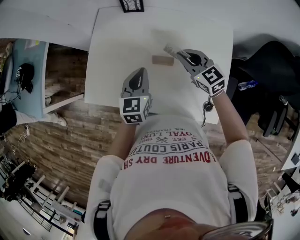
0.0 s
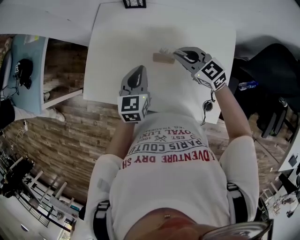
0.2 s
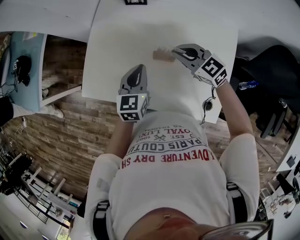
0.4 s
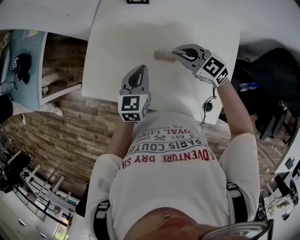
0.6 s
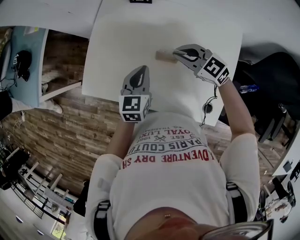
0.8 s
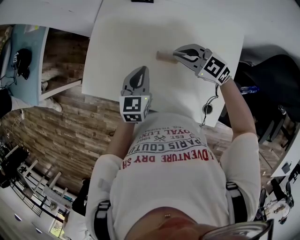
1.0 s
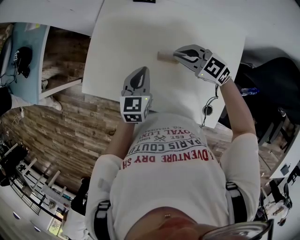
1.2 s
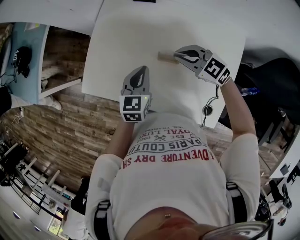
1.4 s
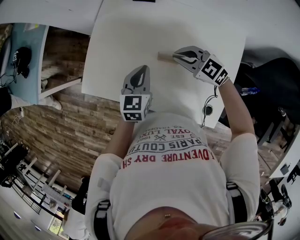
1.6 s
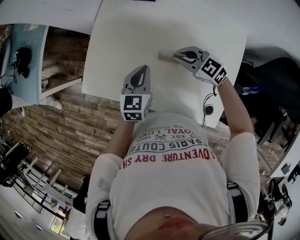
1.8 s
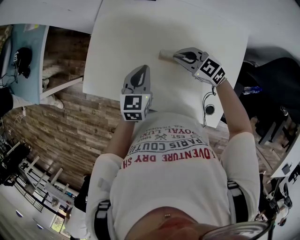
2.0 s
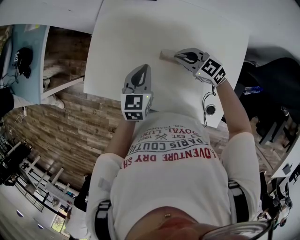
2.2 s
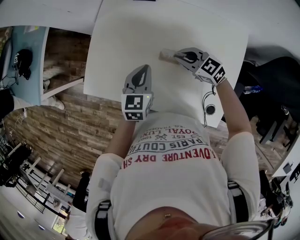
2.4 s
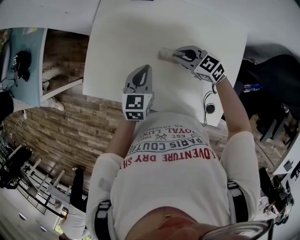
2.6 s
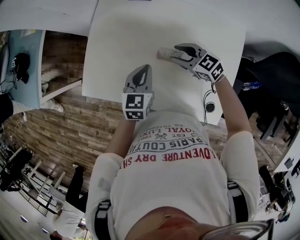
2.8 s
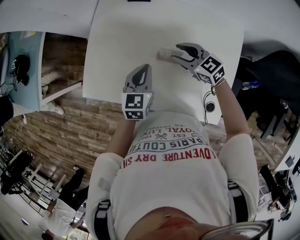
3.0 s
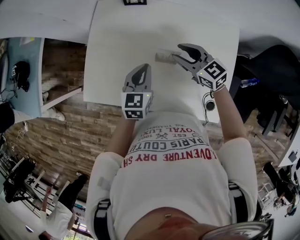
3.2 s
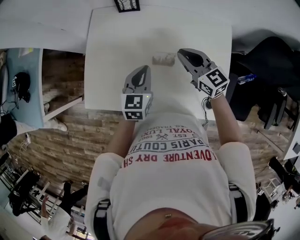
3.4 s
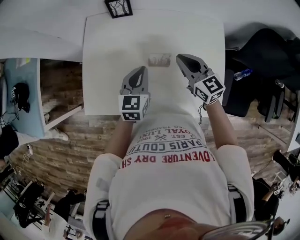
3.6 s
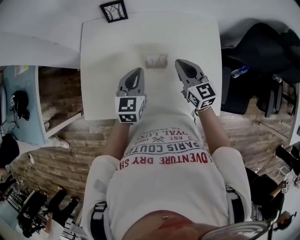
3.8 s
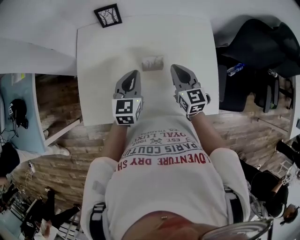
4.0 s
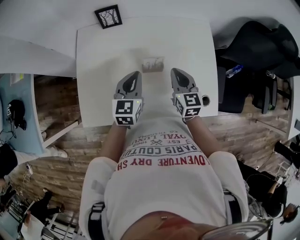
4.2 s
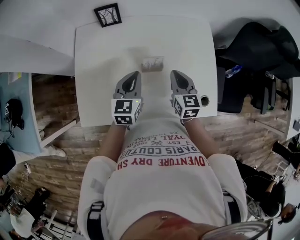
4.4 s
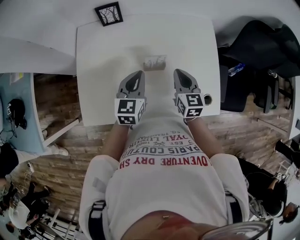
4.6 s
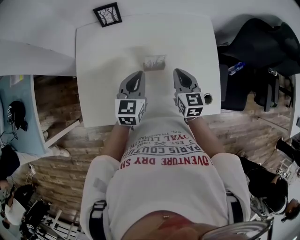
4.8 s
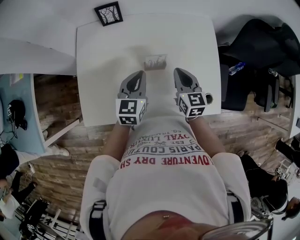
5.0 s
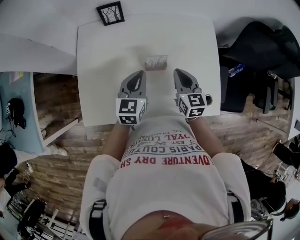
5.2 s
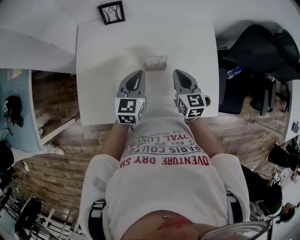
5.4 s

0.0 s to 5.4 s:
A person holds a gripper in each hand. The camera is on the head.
0.0 to 1.4 s: The right gripper changes place by approximately 5 cm, and swivels approximately 30 degrees.
1.4 to 2.8 s: The right gripper goes roughly 5 cm downward, and opens its fingers.
2.8 to 4.0 s: The right gripper changes place by approximately 10 cm, turns by approximately 60 degrees, and closes up.
4.0 to 5.4 s: There are only small adjustments of the grippers.

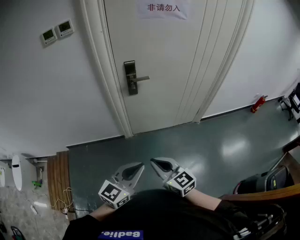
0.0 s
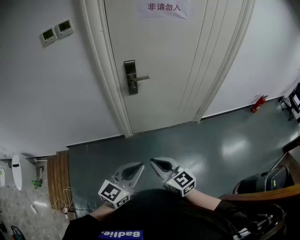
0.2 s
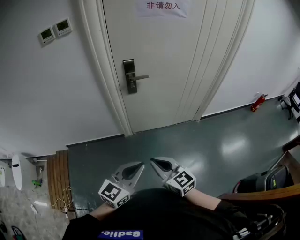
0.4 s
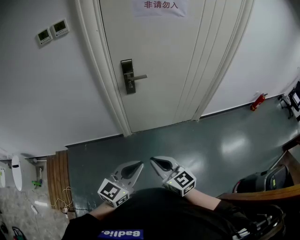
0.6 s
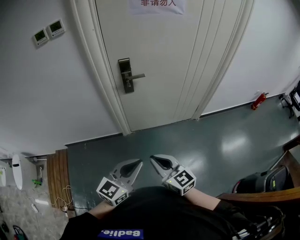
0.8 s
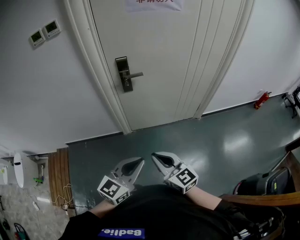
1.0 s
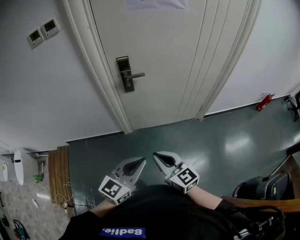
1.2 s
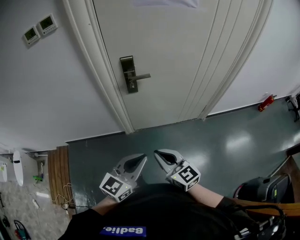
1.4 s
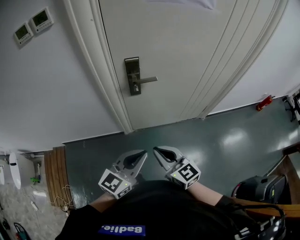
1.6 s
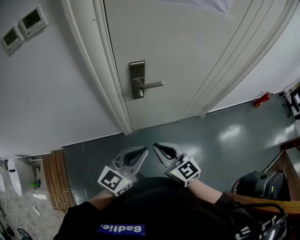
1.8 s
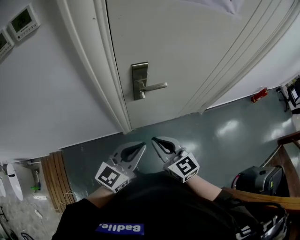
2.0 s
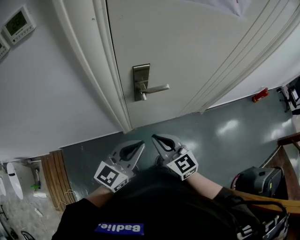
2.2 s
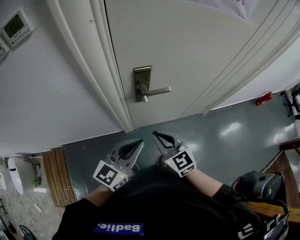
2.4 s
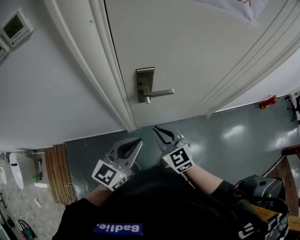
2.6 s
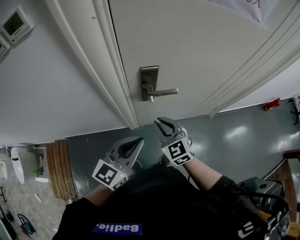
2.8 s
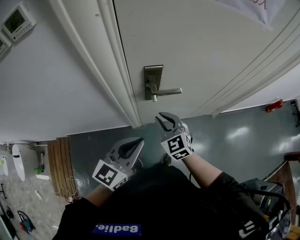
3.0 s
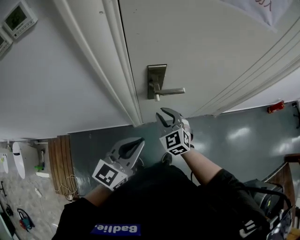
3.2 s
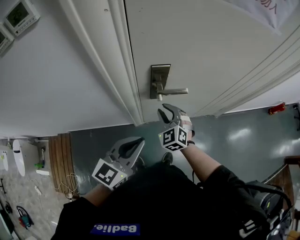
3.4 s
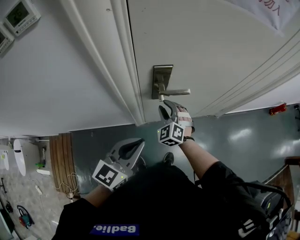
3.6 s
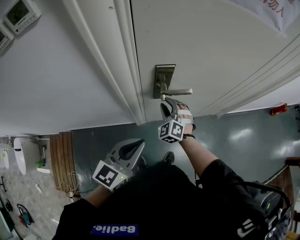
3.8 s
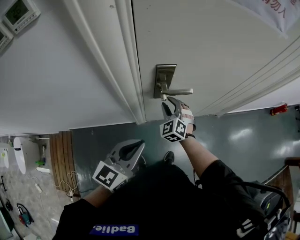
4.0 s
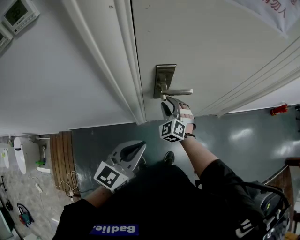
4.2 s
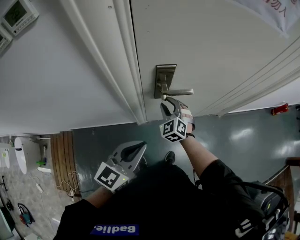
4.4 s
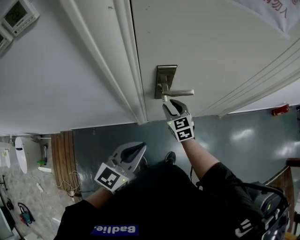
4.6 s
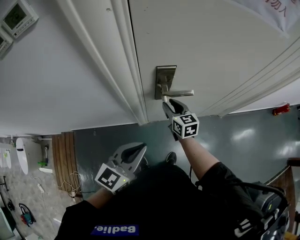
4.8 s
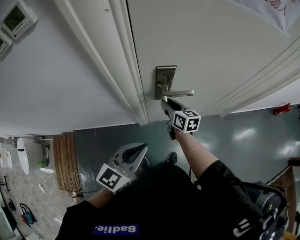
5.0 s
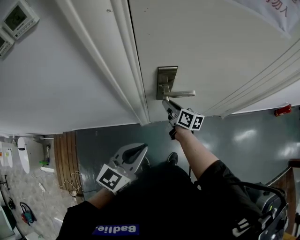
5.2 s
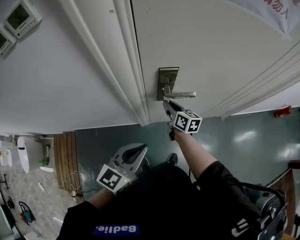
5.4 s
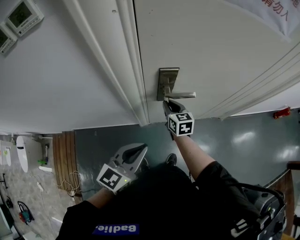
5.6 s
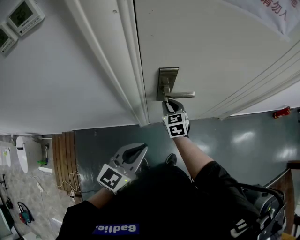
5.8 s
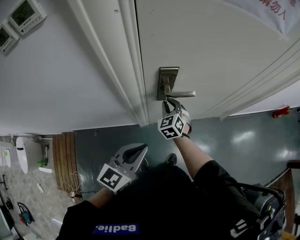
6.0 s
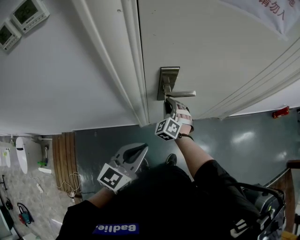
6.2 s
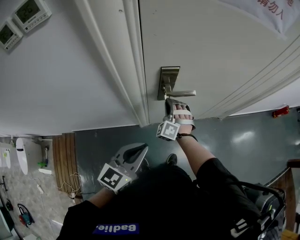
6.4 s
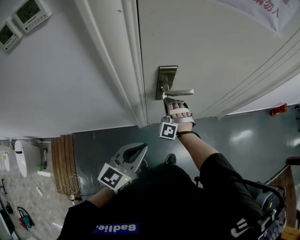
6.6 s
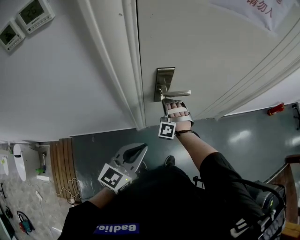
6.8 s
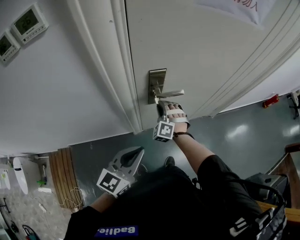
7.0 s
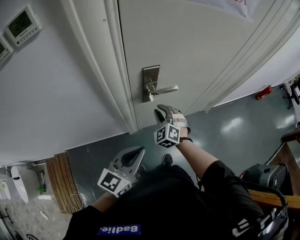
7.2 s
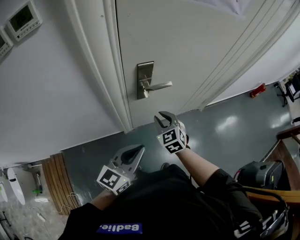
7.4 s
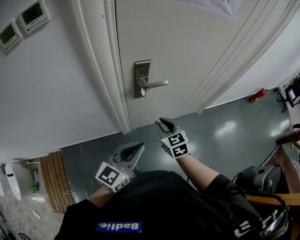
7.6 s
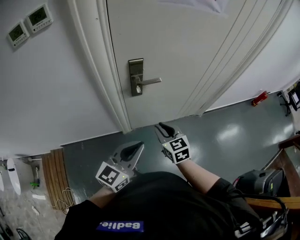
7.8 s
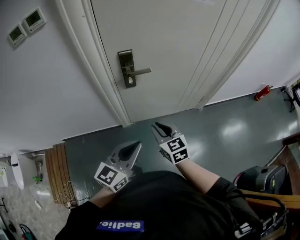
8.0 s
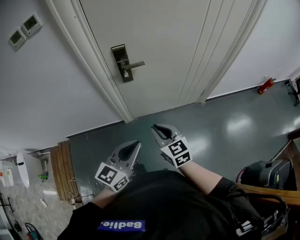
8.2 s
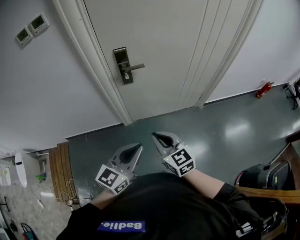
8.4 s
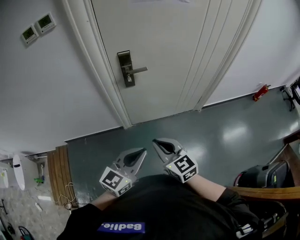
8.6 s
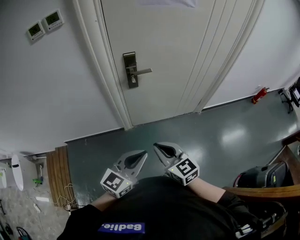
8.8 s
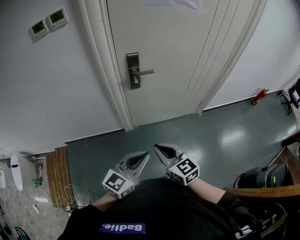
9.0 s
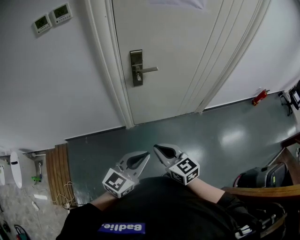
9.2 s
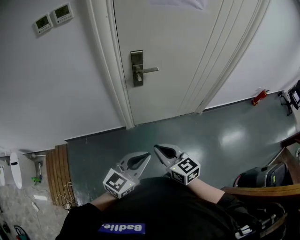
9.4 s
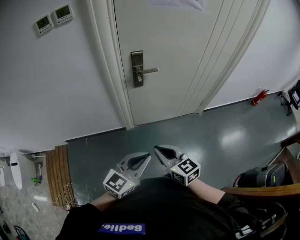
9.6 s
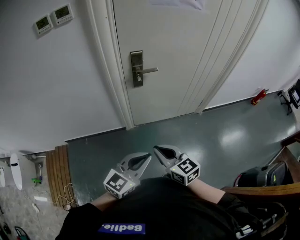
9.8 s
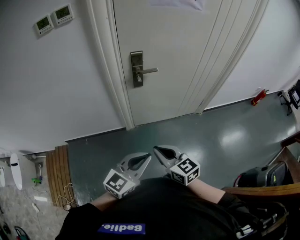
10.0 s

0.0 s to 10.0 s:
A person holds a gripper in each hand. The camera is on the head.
0.0 to 1.4 s: The grippers both shift forward by about 15 cm.
1.4 to 2.8 s: The two grippers go about 30 cm forward and to the left. The right gripper turns by roughly 30 degrees.
2.8 to 4.2 s: The right gripper moves forward and downward, some 15 cm, and turns by some 30 degrees.
4.2 to 5.8 s: The right gripper rotates some 40 degrees.
5.8 to 7.2 s: The right gripper shifts some 5 cm backward, and swivels roughly 40 degrees.
7.2 to 8.6 s: Both grippers travel together backward and to the right, some 35 cm. The right gripper turns by roughly 50 degrees.
8.6 to 10.0 s: The right gripper goes some 5 cm to the left; the left gripper shifts by about 5 cm.

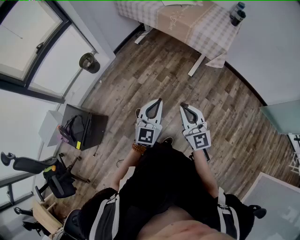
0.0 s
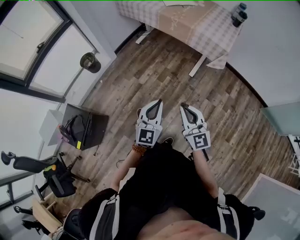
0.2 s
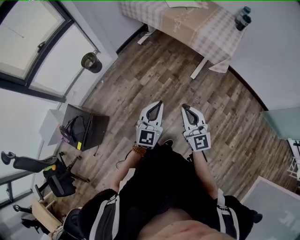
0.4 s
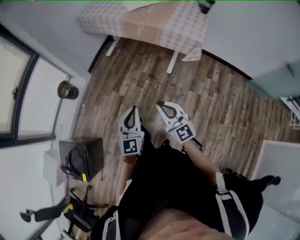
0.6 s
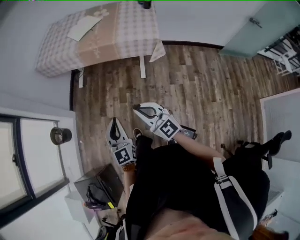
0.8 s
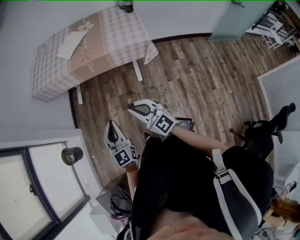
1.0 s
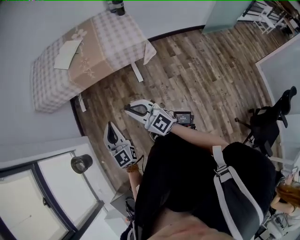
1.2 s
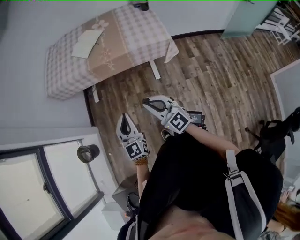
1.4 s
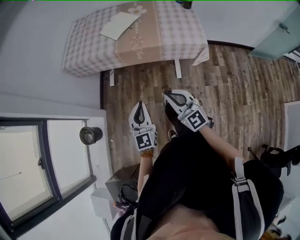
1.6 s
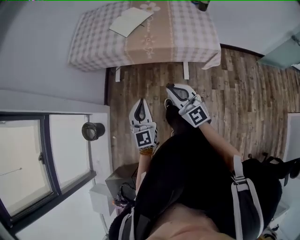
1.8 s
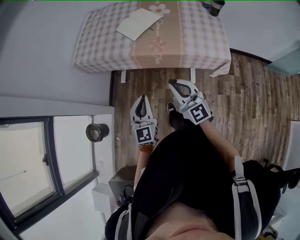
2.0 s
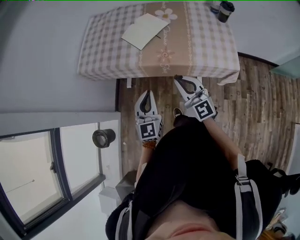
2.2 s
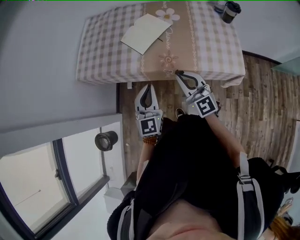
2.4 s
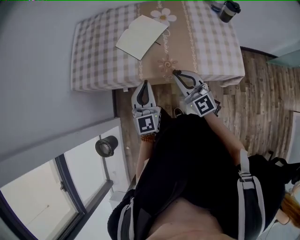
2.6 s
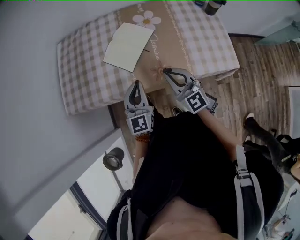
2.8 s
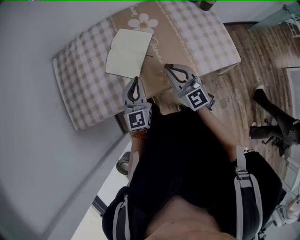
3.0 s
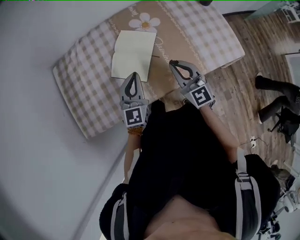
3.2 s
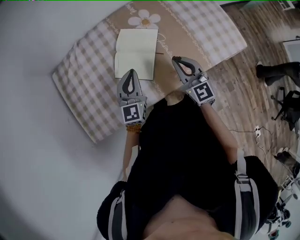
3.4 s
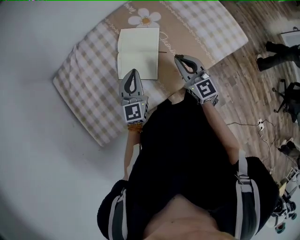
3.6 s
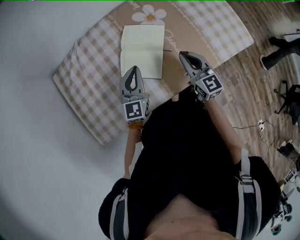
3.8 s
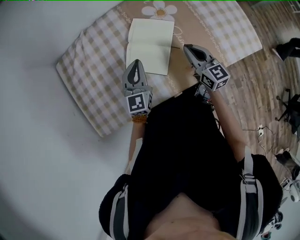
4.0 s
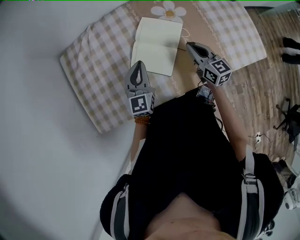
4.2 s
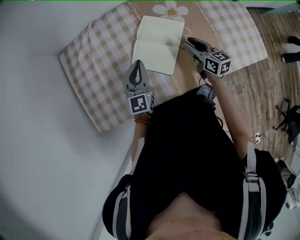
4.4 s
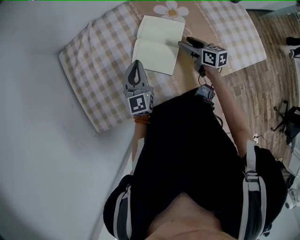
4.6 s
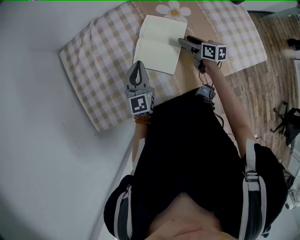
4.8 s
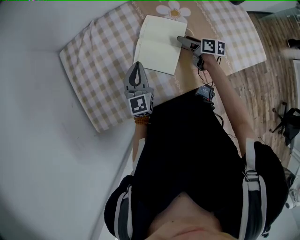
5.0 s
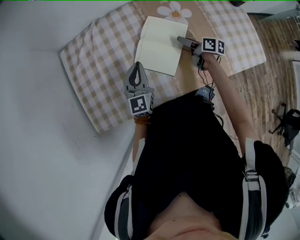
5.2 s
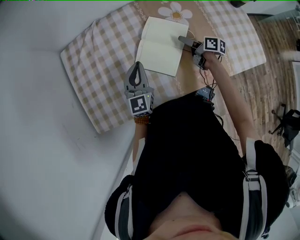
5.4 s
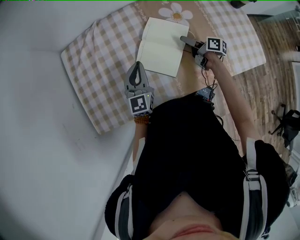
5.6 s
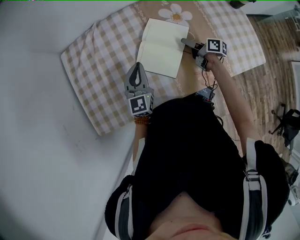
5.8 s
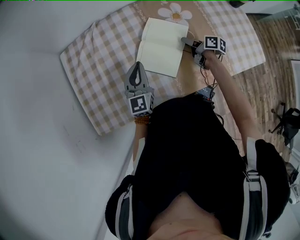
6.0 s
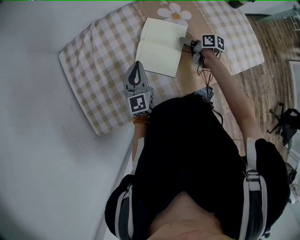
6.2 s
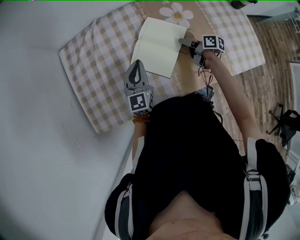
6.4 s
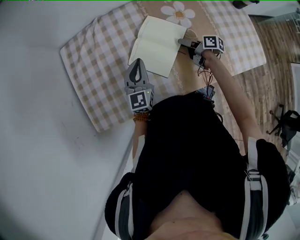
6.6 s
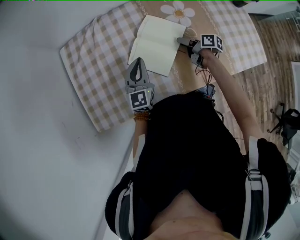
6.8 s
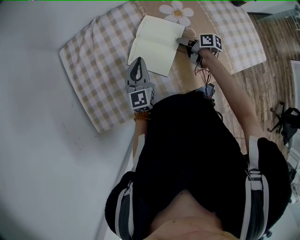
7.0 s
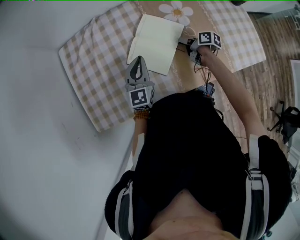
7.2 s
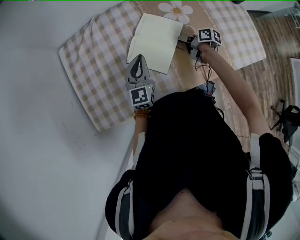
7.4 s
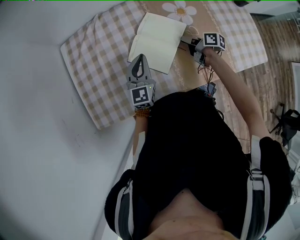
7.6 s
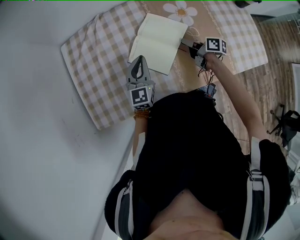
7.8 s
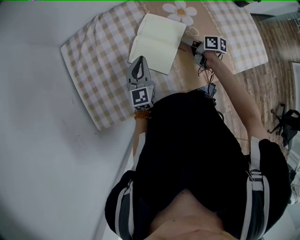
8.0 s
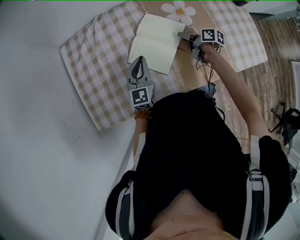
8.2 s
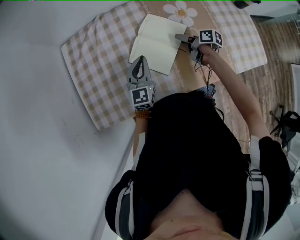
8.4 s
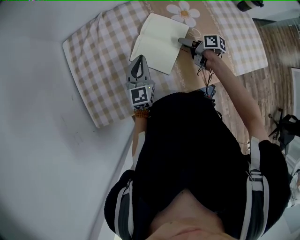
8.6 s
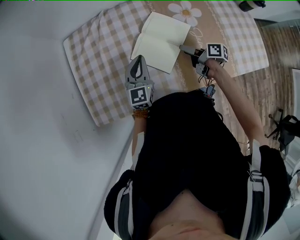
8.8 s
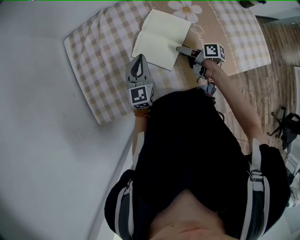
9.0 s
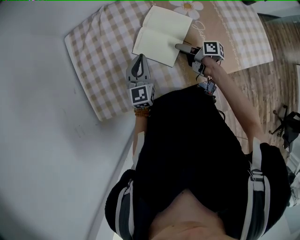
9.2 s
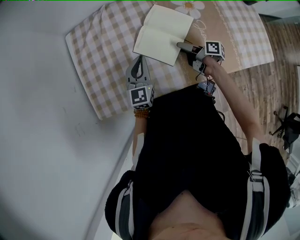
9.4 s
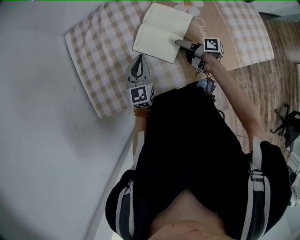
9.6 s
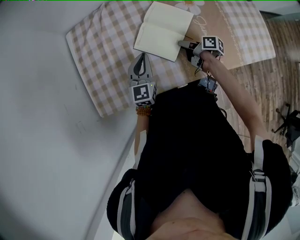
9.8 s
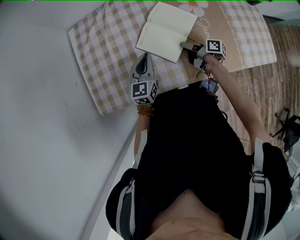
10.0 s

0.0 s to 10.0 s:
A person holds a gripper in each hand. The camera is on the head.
0.0 to 1.4 s: The grippers both shift forward by some 30 cm. The right gripper swivels approximately 20 degrees.
1.4 to 2.8 s: The two grippers travel together, forward, some 50 cm.
2.8 to 4.2 s: The right gripper changes place by approximately 20 cm, and swivels roughly 40 degrees. Meanwhile the left gripper changes place by about 25 cm.
4.2 to 5.8 s: The right gripper travels downward and forward by some 10 cm, rolls clockwise, seen from behind, by roughly 50 degrees, and opens up.
5.8 to 7.2 s: The right gripper closes.
7.2 to 8.6 s: The right gripper opens up.
8.6 to 10.0 s: The right gripper shifts some 5 cm to the left, and closes. The left gripper changes place by about 5 cm.
